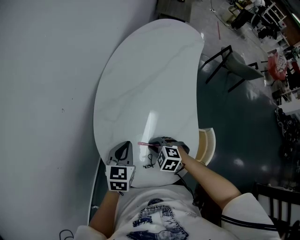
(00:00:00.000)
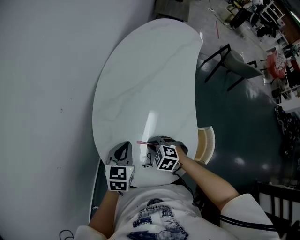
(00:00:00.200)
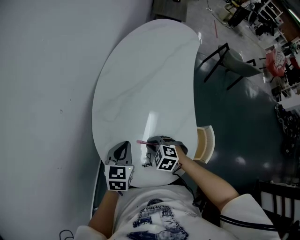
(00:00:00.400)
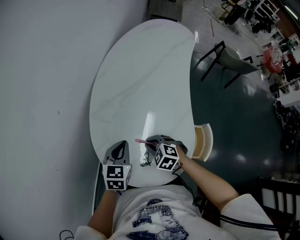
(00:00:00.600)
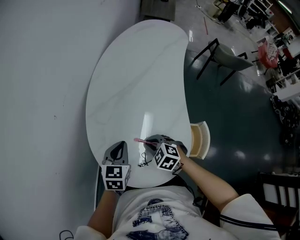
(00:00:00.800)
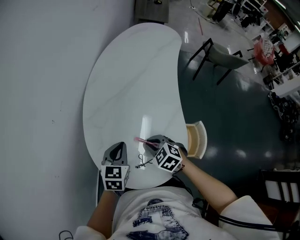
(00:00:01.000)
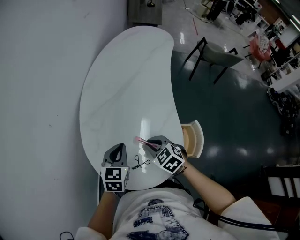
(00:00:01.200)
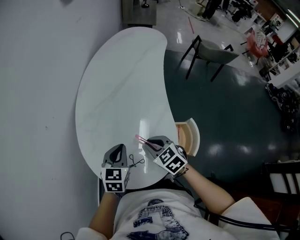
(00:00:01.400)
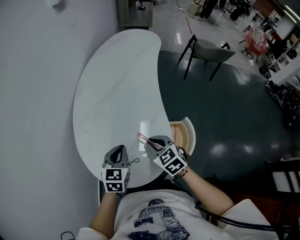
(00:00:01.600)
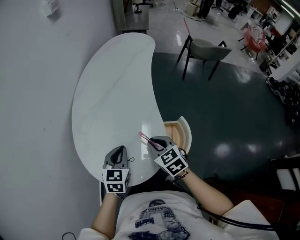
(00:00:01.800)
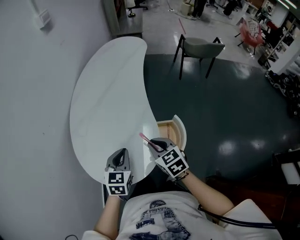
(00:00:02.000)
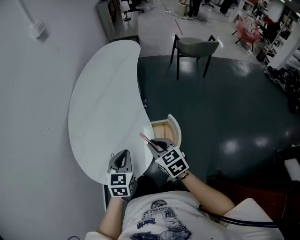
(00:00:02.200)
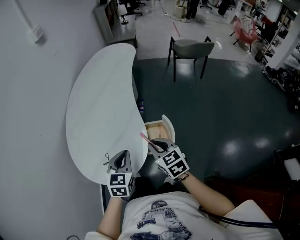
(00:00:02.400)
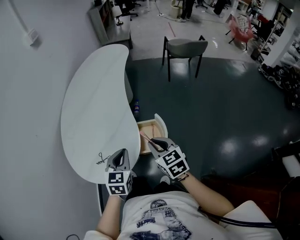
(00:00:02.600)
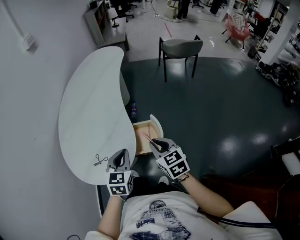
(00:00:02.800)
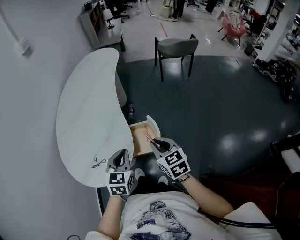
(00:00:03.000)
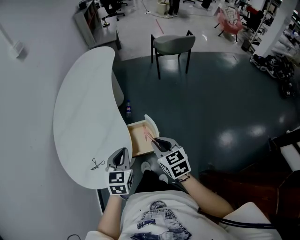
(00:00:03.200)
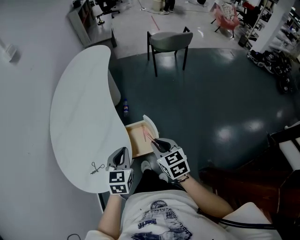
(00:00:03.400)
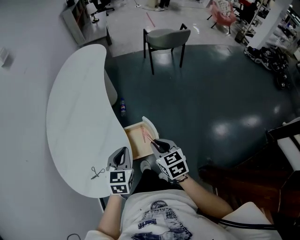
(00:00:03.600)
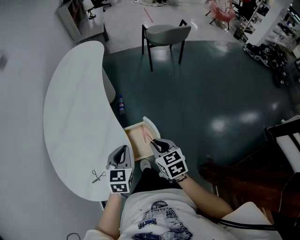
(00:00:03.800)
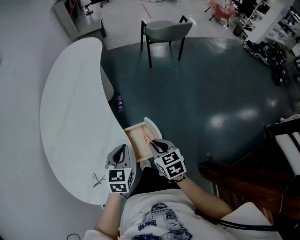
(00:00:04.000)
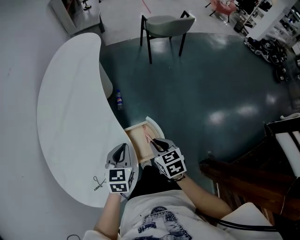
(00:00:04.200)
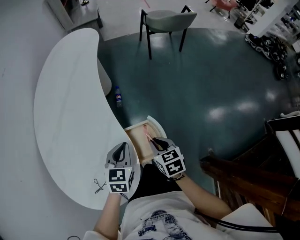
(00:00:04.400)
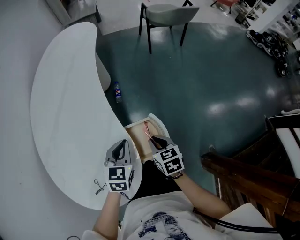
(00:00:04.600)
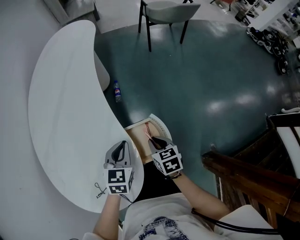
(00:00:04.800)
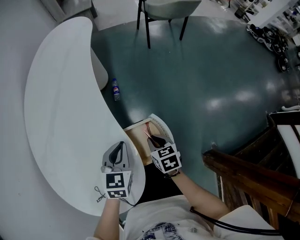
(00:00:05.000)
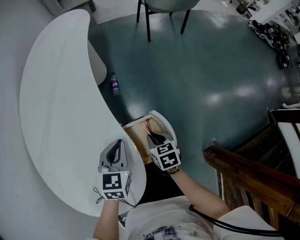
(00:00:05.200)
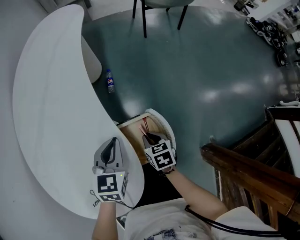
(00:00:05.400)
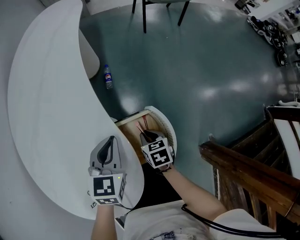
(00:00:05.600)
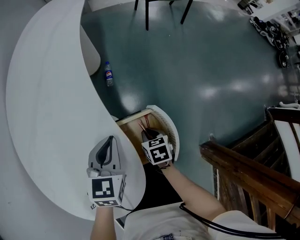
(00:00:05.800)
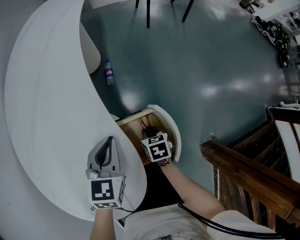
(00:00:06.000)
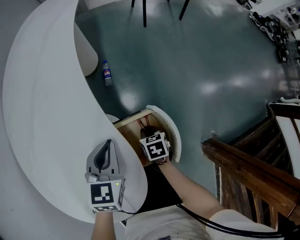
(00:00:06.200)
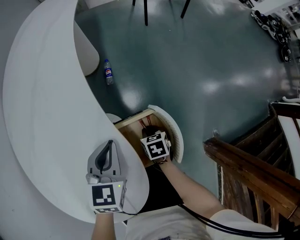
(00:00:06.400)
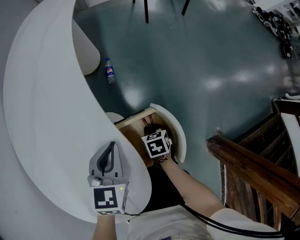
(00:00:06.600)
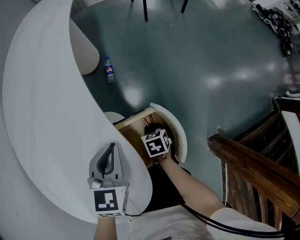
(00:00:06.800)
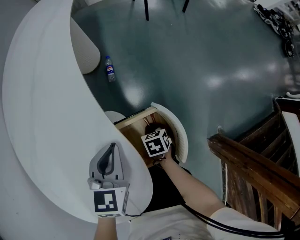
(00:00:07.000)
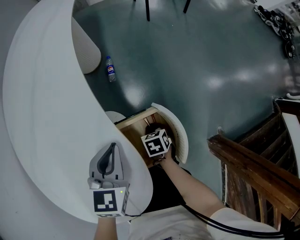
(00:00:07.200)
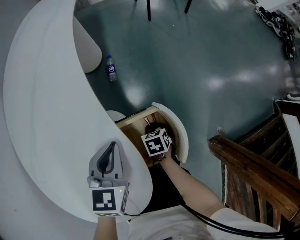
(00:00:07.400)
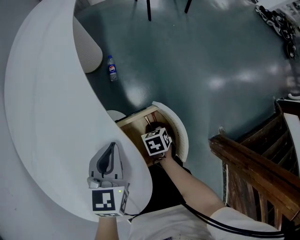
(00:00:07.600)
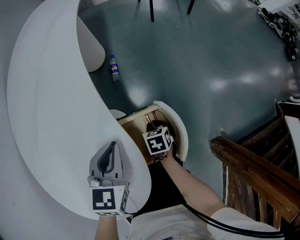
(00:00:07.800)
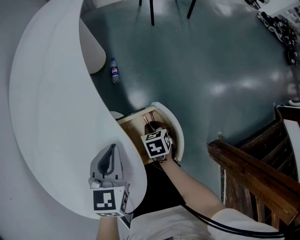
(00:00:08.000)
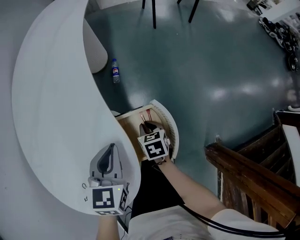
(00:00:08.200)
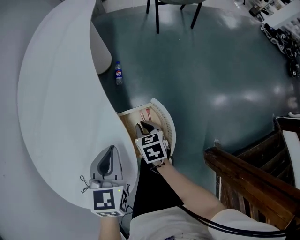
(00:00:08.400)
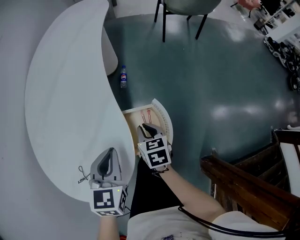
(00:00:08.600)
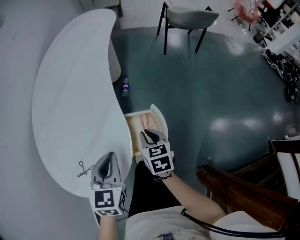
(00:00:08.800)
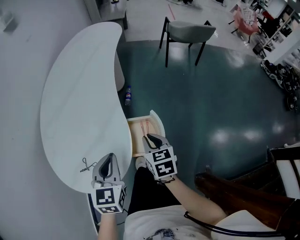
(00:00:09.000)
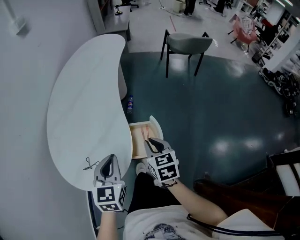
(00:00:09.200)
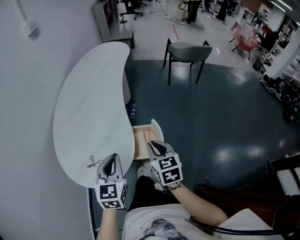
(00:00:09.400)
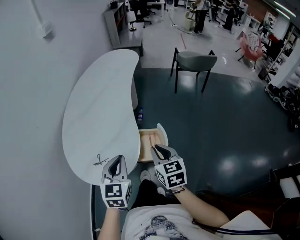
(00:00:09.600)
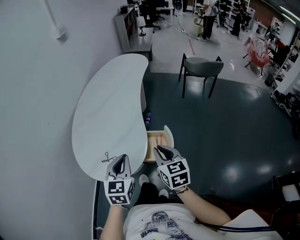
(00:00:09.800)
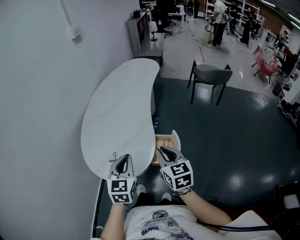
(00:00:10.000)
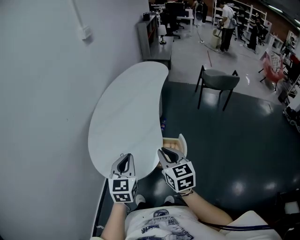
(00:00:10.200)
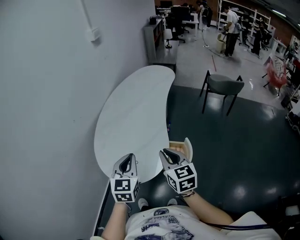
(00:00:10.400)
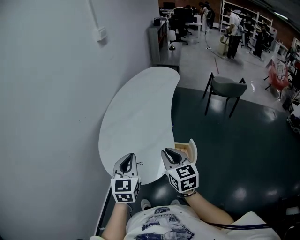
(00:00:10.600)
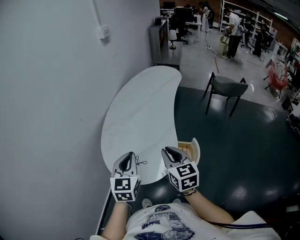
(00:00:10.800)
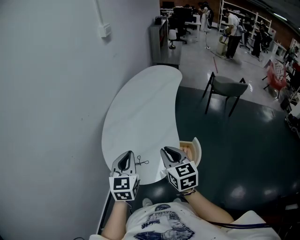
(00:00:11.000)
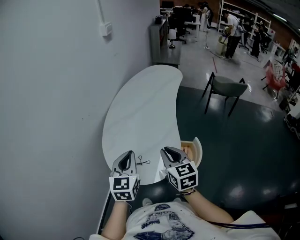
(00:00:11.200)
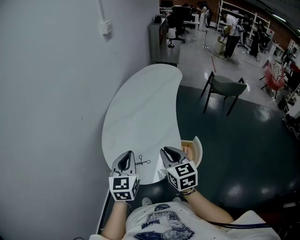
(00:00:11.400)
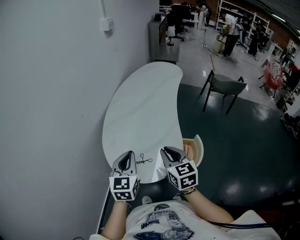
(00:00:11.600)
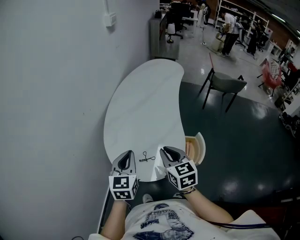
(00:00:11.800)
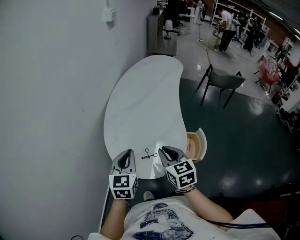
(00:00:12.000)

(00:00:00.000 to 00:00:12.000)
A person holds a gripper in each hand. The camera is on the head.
00:00:00.000 - 00:00:01.600: The right gripper moves to the right and upward, about 20 cm, and rotates approximately 50 degrees. The left gripper goes approximately 15 cm to the right and backward.
00:00:01.600 - 00:00:03.000: The grippers both shift to the right and backward by some 30 cm. The right gripper turns by approximately 30 degrees.
00:00:03.000 - 00:00:04.400: The left gripper is displaced forward and downward by some 20 cm; the right gripper travels downward and forward by roughly 20 cm, and turns by some 20 degrees.
00:00:04.400 - 00:00:06.000: The right gripper goes roughly 20 cm downward; the left gripper travels downward and forward by some 10 cm.
00:00:06.000 - 00:00:07.600: The right gripper heads downward, covering approximately 5 cm.
00:00:07.600 - 00:00:09.000: The left gripper shifts roughly 20 cm backward and upward, and changes its angle by approximately 20 degrees. The right gripper heads upward, covering roughly 30 cm, and rotates roughly 30 degrees.
00:00:09.000 - 00:00:10.400: Both grippers move upward and to the left, roughly 25 cm. The right gripper rotates approximately 30 degrees.
00:00:10.400 - 00:00:12.000: Both grippers travel together to the left, approximately 15 cm.

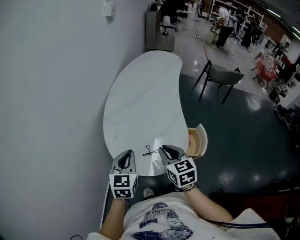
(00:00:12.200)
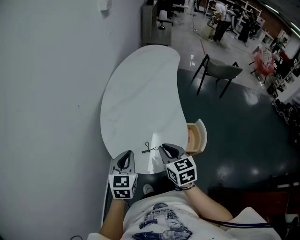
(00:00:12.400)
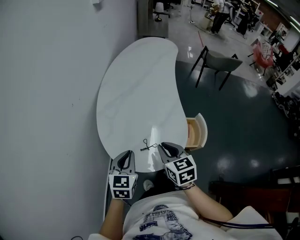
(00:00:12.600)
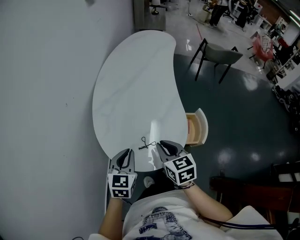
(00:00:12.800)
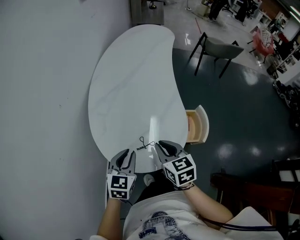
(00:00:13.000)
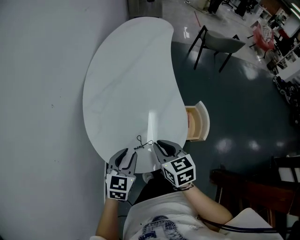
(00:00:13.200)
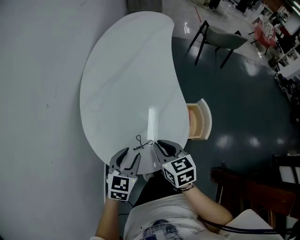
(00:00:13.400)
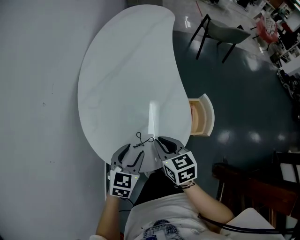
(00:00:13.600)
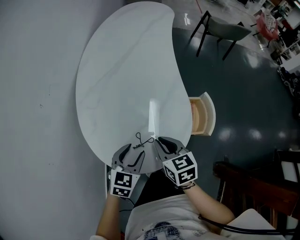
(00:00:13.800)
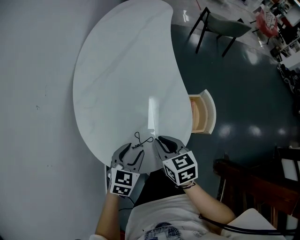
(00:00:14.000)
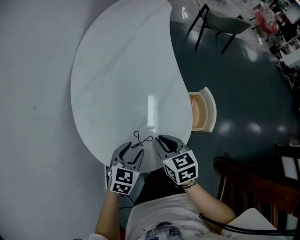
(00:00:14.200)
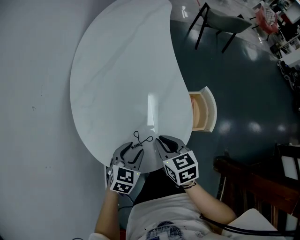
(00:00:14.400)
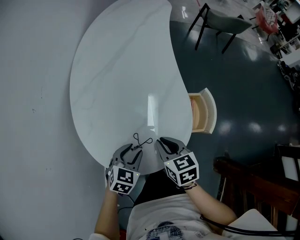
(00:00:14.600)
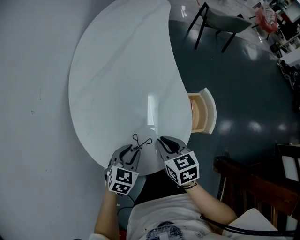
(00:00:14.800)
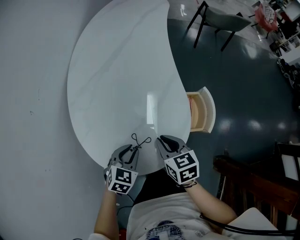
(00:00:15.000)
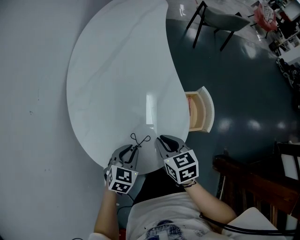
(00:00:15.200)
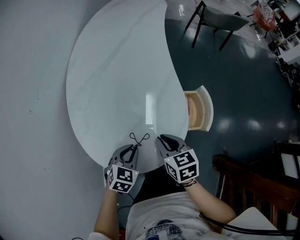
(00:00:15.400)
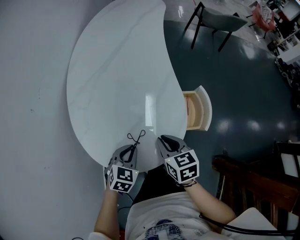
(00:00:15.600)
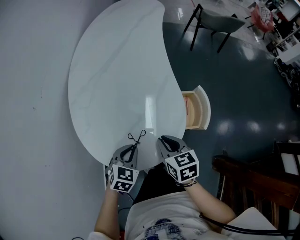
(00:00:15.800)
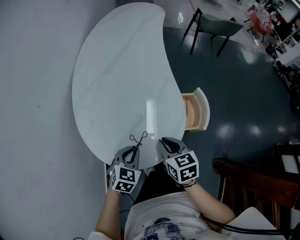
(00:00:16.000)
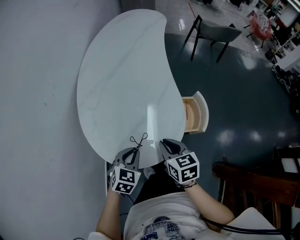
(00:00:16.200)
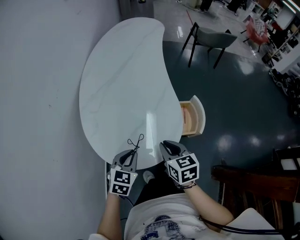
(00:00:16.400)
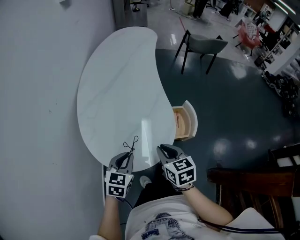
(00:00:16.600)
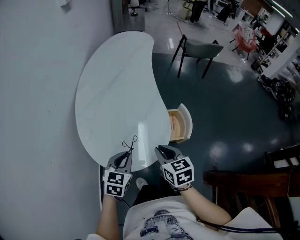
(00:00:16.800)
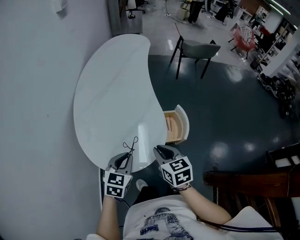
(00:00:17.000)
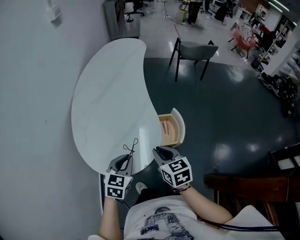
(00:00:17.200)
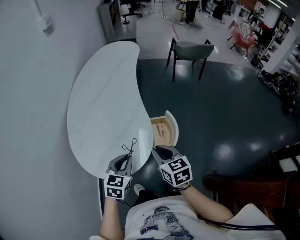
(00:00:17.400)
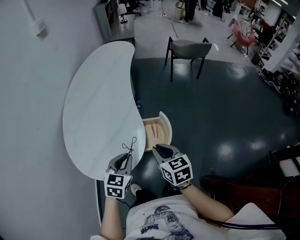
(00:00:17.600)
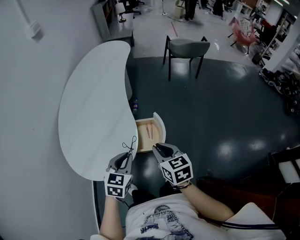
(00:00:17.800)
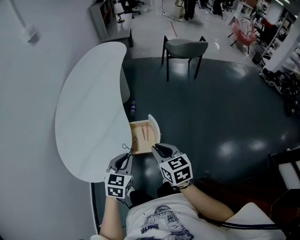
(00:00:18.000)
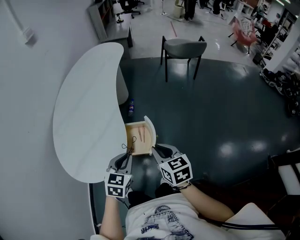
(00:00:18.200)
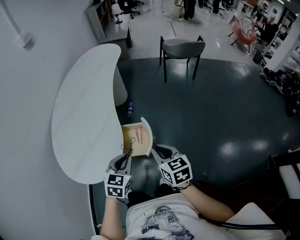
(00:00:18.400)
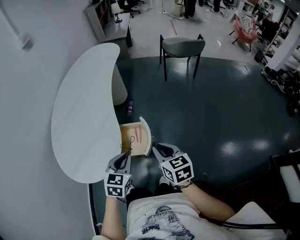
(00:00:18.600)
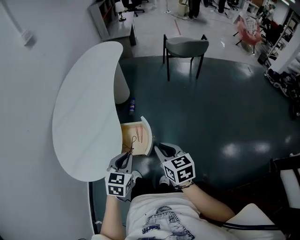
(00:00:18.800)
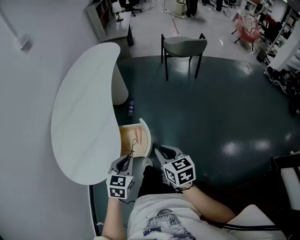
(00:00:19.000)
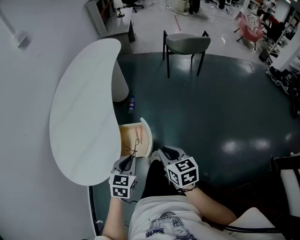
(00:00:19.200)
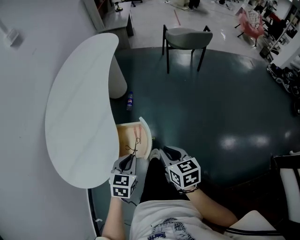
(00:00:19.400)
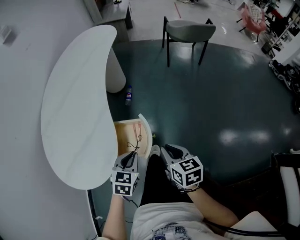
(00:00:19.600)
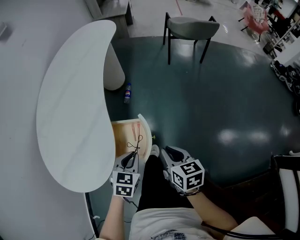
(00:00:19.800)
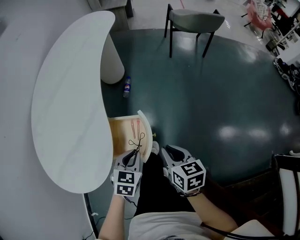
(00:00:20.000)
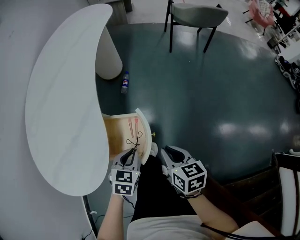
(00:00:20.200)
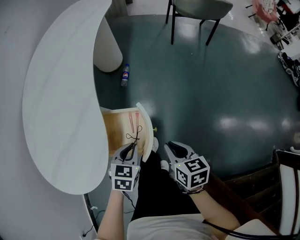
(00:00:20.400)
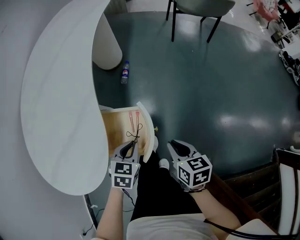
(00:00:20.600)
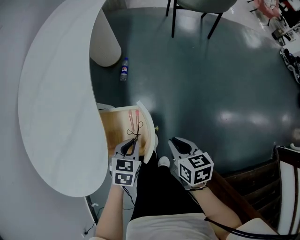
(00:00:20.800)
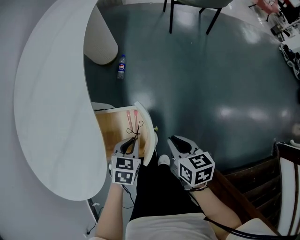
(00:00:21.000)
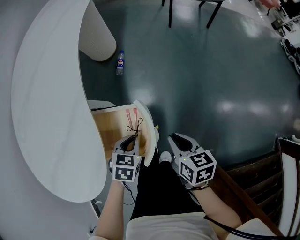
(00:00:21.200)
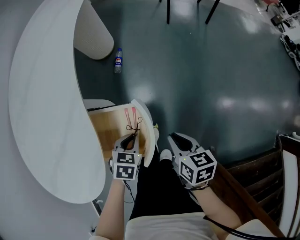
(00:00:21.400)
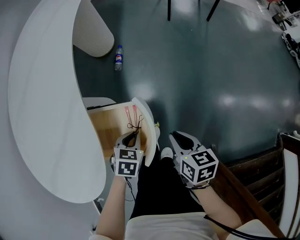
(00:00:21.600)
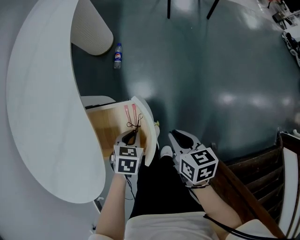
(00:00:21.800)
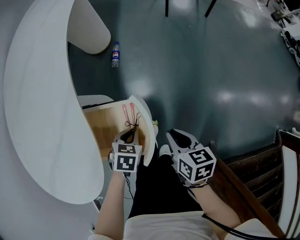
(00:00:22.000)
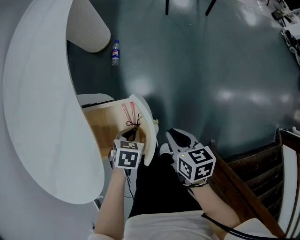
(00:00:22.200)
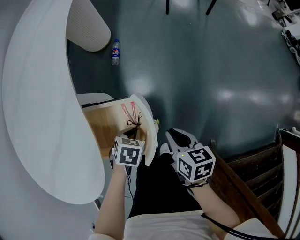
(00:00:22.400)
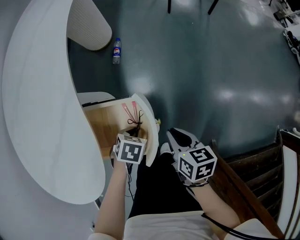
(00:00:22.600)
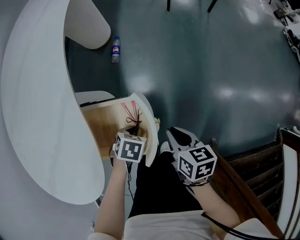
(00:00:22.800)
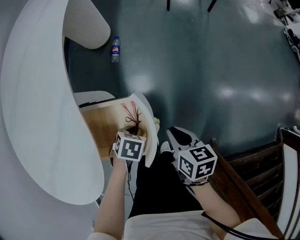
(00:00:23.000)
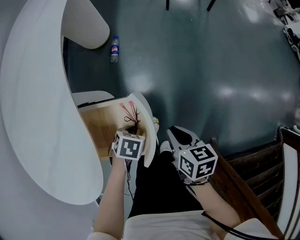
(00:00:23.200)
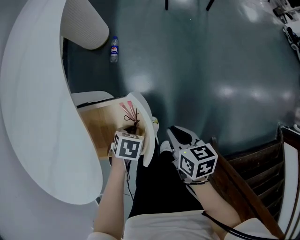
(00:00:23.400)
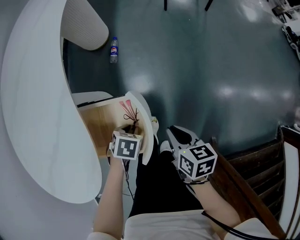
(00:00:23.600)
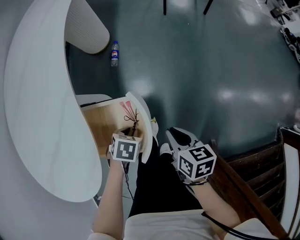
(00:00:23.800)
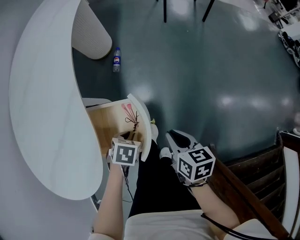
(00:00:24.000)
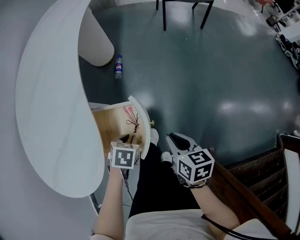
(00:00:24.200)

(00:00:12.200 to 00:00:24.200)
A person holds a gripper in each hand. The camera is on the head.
00:00:12.200 - 00:00:13.800: The two grippers go roughly 15 cm downward. The left gripper changes its angle by approximately 30 degrees, and opens.
00:00:13.800 - 00:00:15.200: The left gripper is displaced downward by roughly 5 cm, and closes up.
00:00:15.200 - 00:00:16.600: The left gripper travels upward by roughly 10 cm; the right gripper travels upward and backward by some 10 cm.
00:00:16.600 - 00:00:18.200: The grippers both shift to the right by approximately 30 cm.
00:00:18.200 - 00:00:19.800: The right gripper shifts some 15 cm downward, to the right and forward. The left gripper moves downward, forward and to the right, approximately 15 cm.
00:00:19.800 - 00:00:21.200: The grippers both shift downward by about 15 cm.
00:00:21.200 - 00:00:22.600: The left gripper goes roughly 10 cm downward, while the right gripper is displaced downward by approximately 5 cm.
00:00:22.600 - 00:00:24.200: Both grippers travel together upward, approximately 5 cm.
